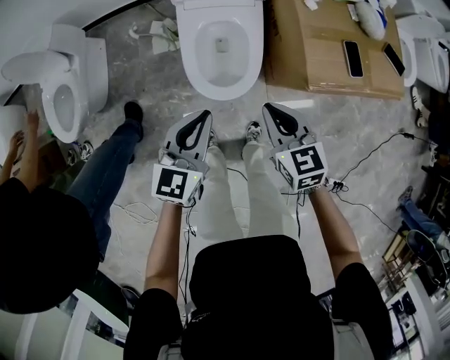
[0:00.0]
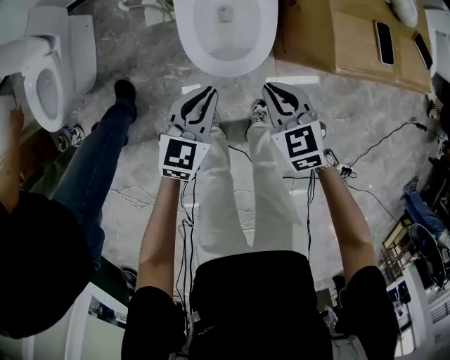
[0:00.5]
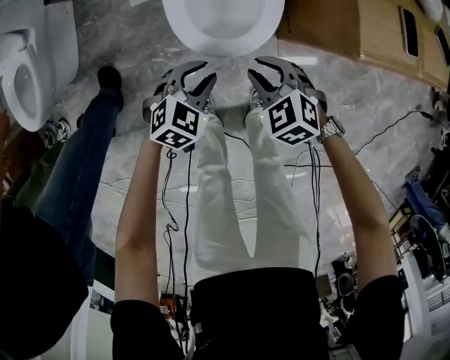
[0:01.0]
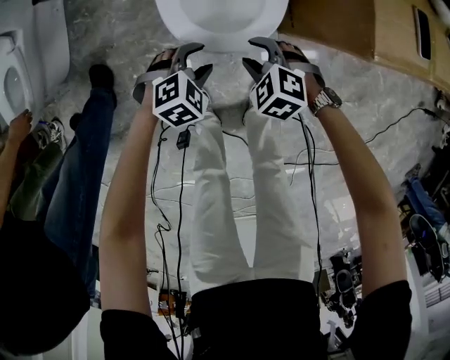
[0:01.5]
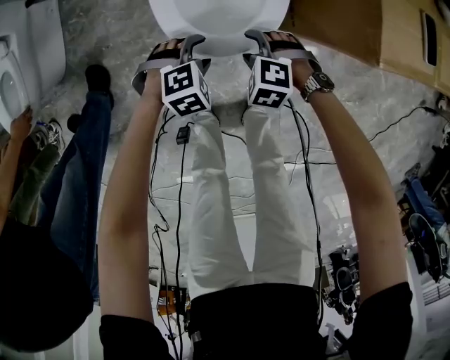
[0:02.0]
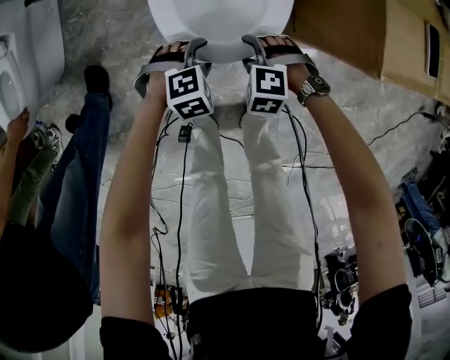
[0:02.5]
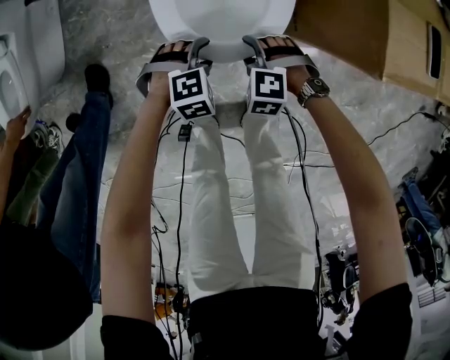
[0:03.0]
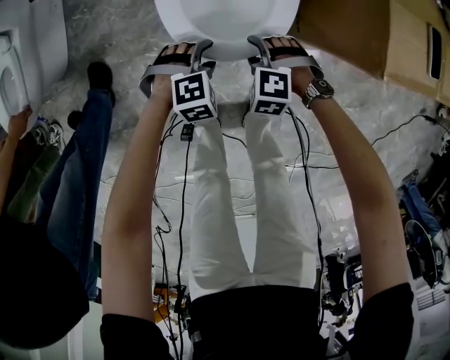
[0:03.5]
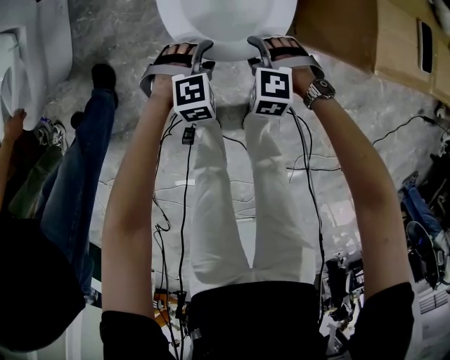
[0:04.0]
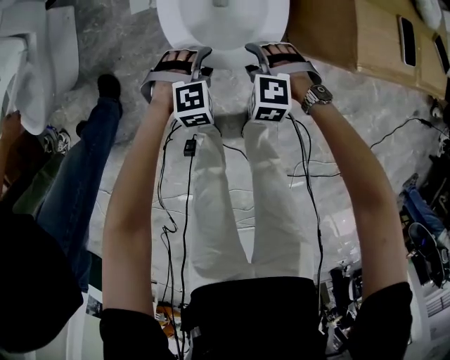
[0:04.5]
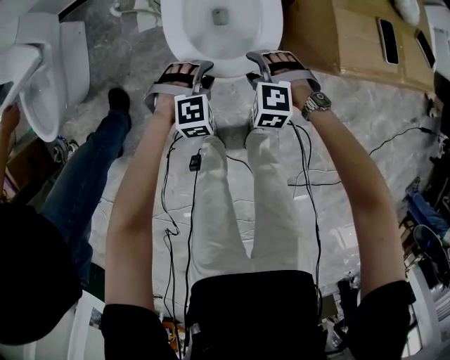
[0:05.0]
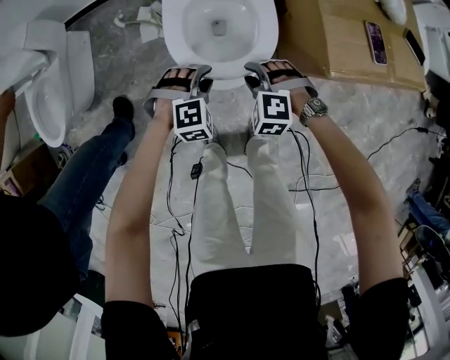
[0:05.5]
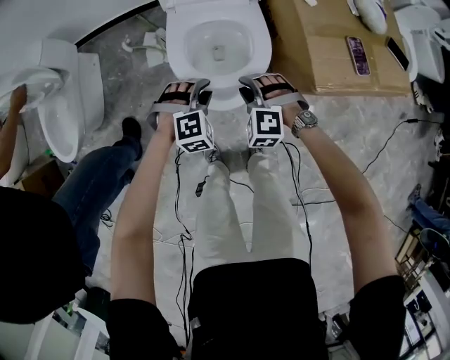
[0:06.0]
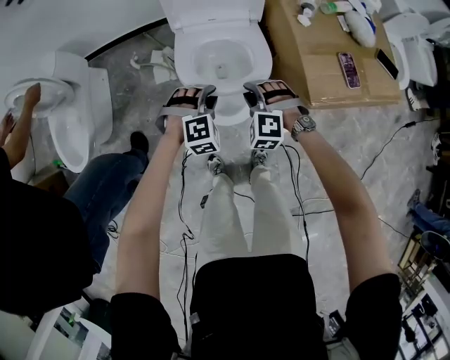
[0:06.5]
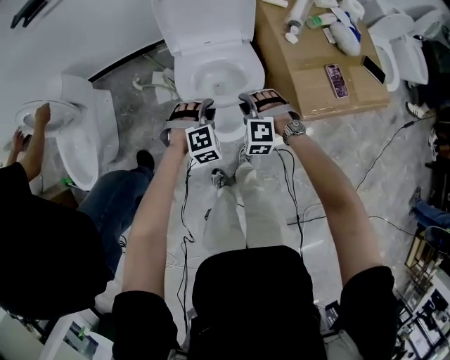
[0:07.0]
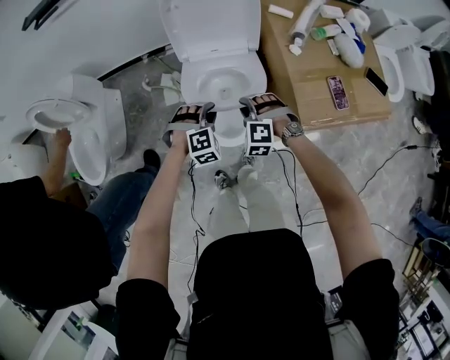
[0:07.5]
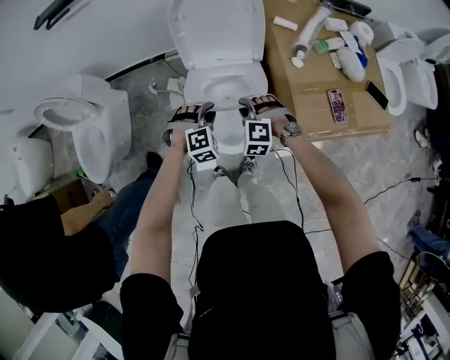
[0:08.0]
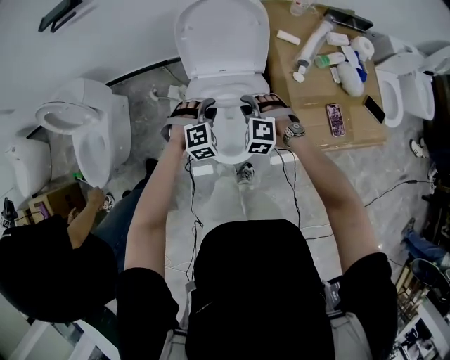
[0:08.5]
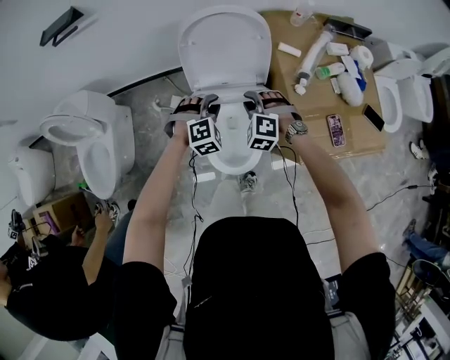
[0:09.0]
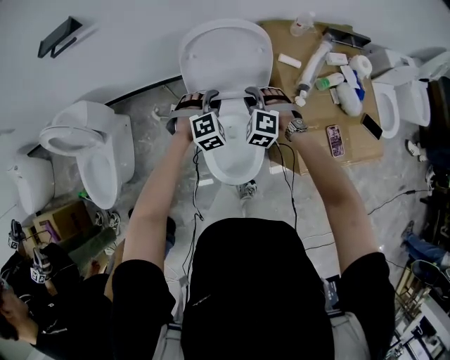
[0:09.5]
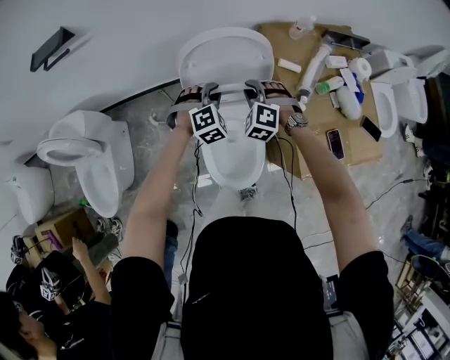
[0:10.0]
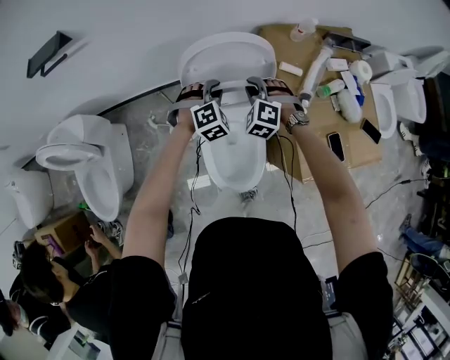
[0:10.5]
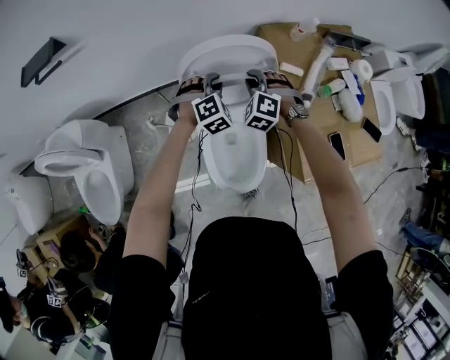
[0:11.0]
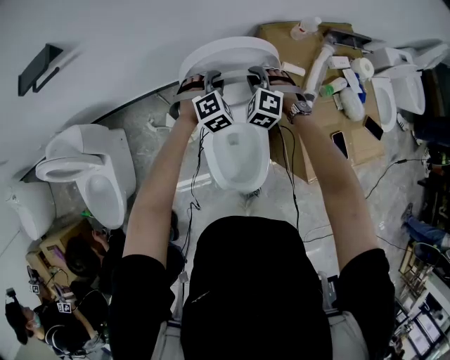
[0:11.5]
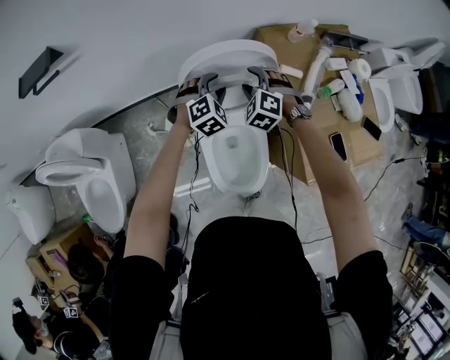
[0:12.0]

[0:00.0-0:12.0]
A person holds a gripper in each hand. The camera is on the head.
0:00.0 to 0:02.0: The grippers both shift downward by roughly 40 cm. The left gripper angles its fingers downward, by roughly 50 degrees, and opens. Meanwhile the right gripper rolls counterclockwise, seen from behind, by some 60 degrees, and opens up.
0:02.0 to 0:04.0: The grippers move only a little.
0:04.0 to 0:06.0: Both grippers move upward, about 20 cm. The right gripper closes its fingers; the left gripper closes up.
0:06.0 to 0:08.0: The right gripper goes about 15 cm forward and upward, while the left gripper travels upward and forward by some 15 cm.
0:08.0 to 0:10.0: Both grippers move forward, about 25 cm.
0:10.0 to 0:12.0: The grippers both shift forward by about 10 cm. The right gripper opens; the left gripper opens.

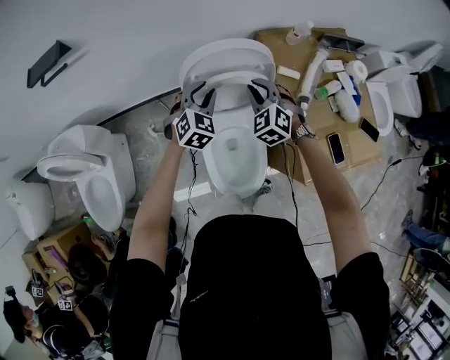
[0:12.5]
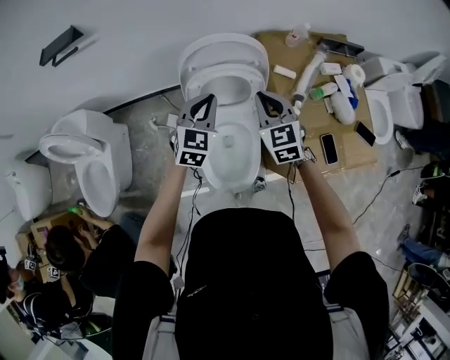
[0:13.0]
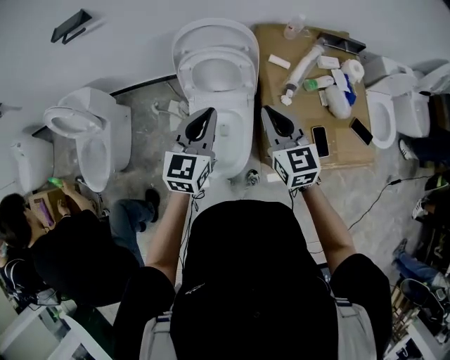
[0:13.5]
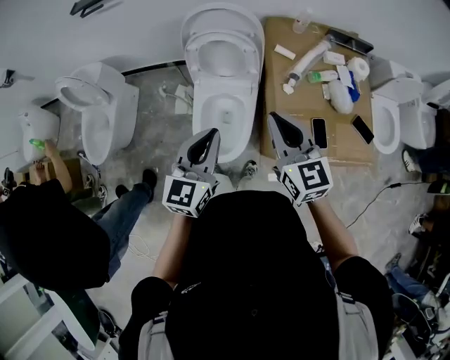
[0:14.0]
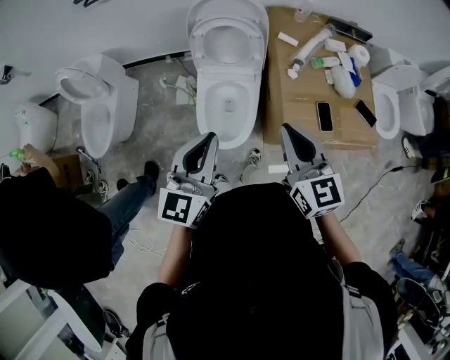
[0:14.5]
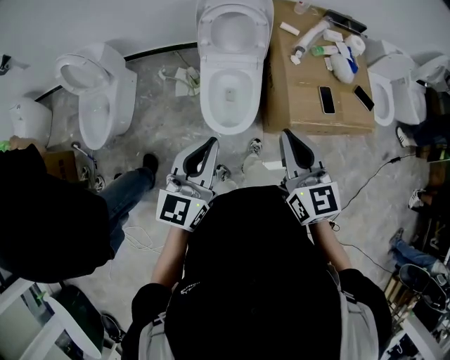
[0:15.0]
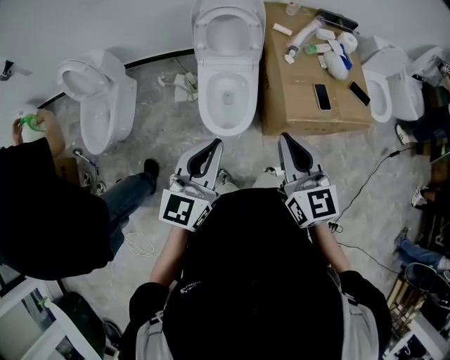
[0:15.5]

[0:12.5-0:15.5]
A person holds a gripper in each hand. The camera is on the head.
0:12.5 to 0:14.0: The right gripper shifts roughly 40 cm backward, upward and to the right, and changes its angle by approximately 50 degrees. Meanwhile the left gripper is displaced backward and upward by roughly 40 cm, swivels some 40 degrees, and closes.
0:14.0 to 0:15.5: The grippers both shift backward by roughly 25 cm.

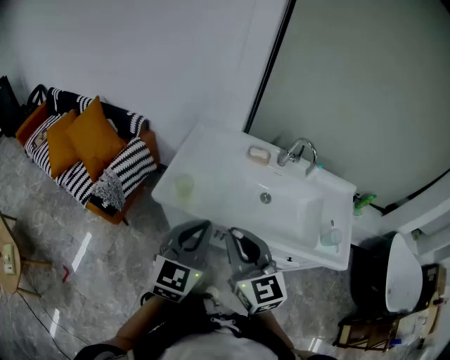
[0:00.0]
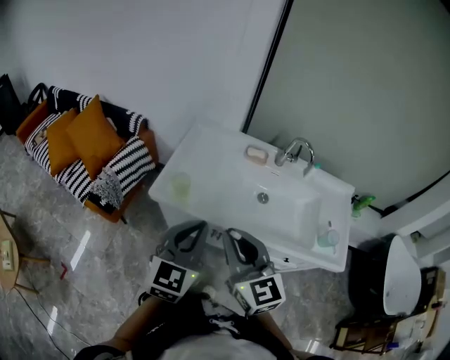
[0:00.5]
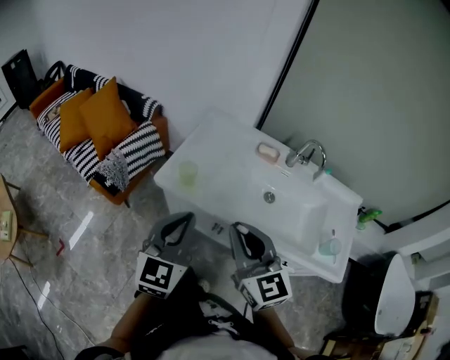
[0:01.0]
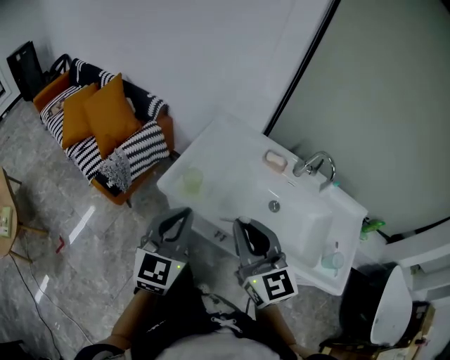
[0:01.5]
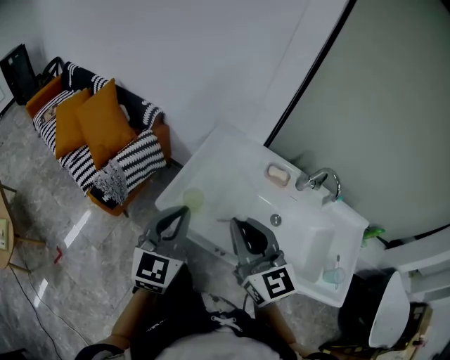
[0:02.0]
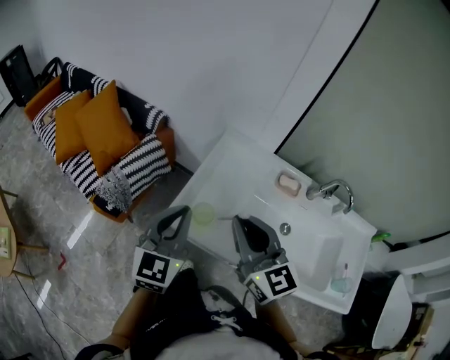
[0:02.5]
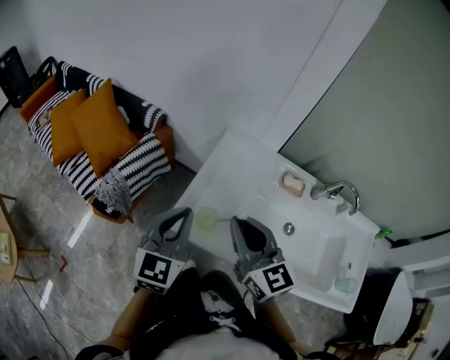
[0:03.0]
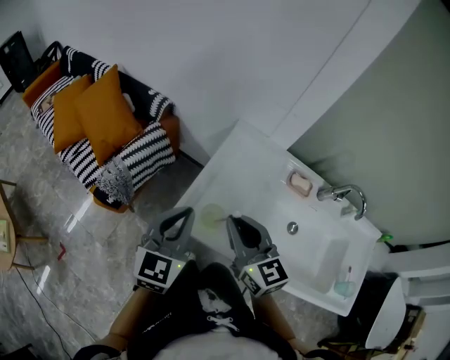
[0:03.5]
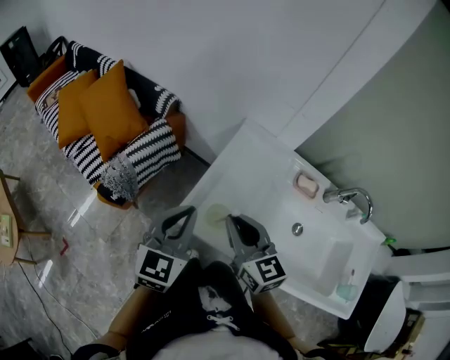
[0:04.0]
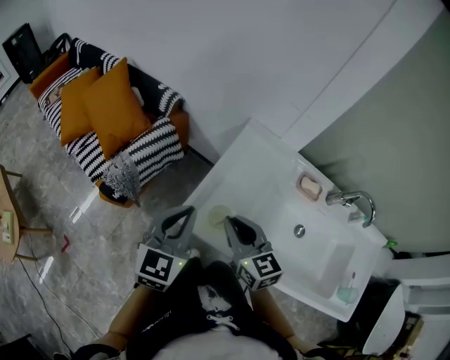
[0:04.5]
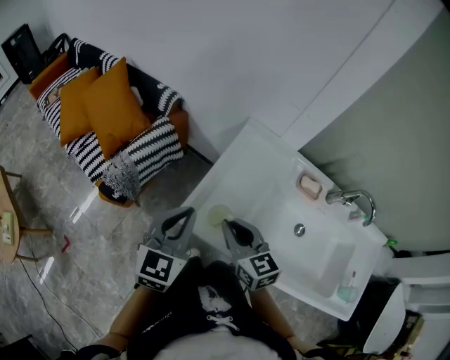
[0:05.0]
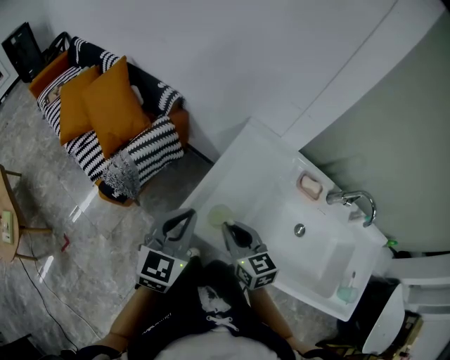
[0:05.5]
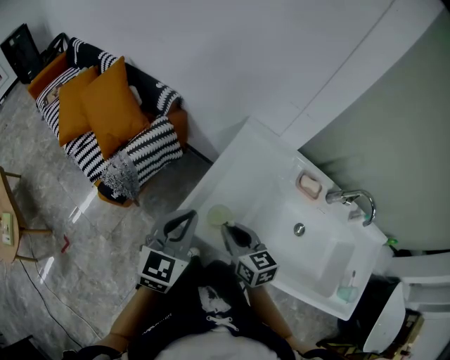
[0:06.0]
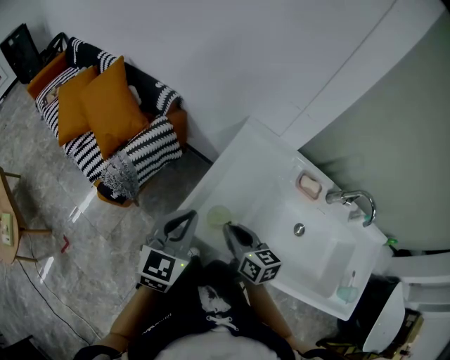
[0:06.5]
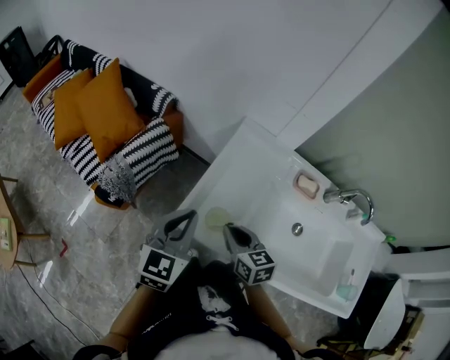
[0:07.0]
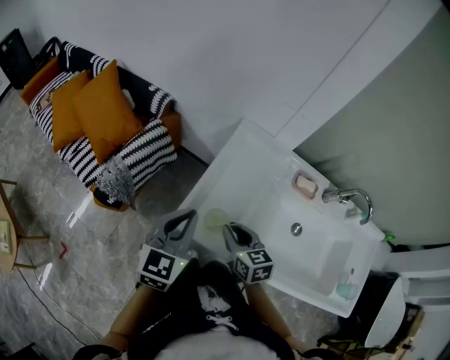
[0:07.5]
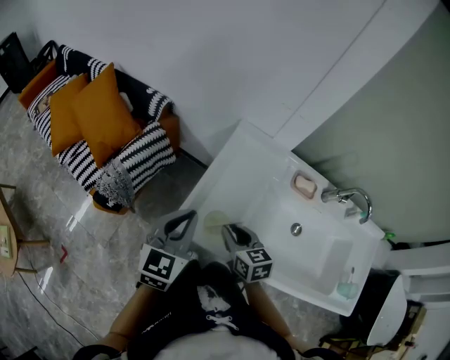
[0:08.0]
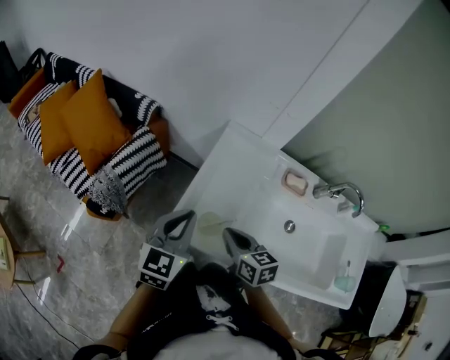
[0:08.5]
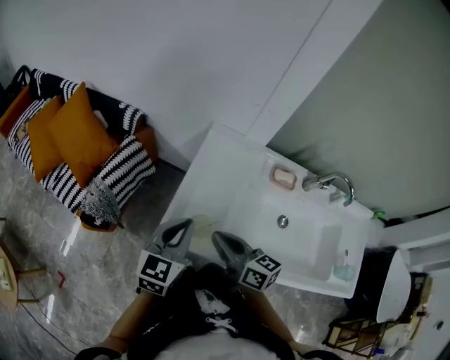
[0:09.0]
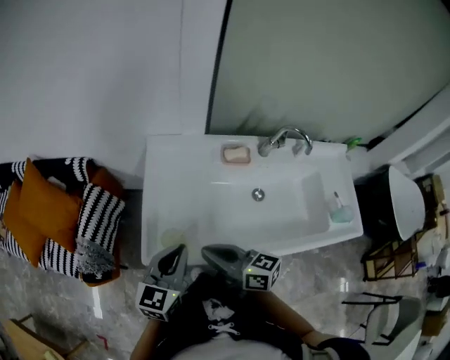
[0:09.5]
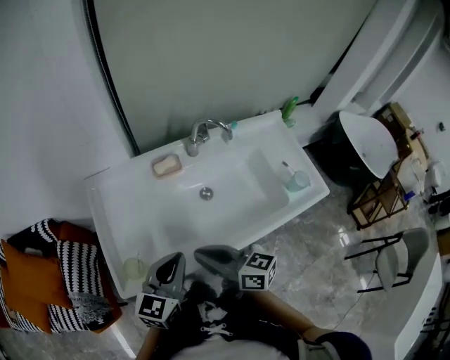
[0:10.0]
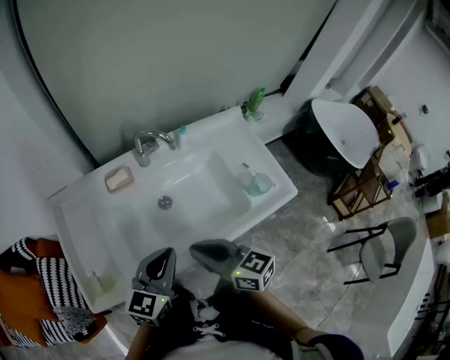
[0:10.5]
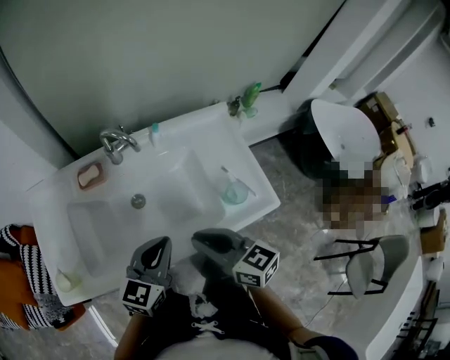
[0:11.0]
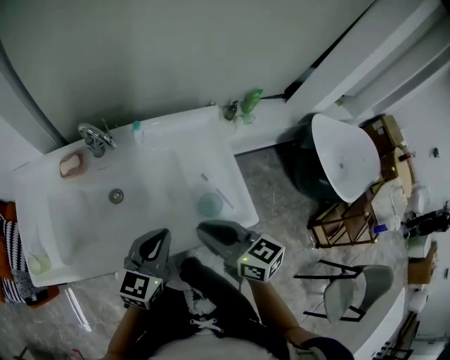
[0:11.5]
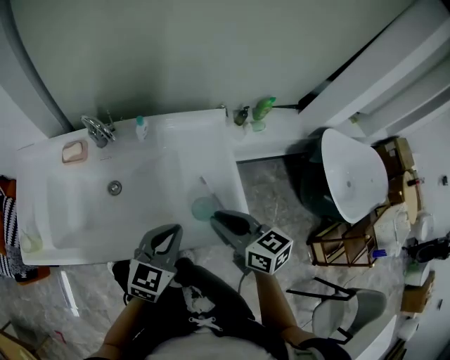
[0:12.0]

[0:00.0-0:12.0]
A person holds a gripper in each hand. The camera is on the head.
0:00.0 to 0:02.0: The left gripper goes some 15 cm forward and to the left; the right gripper shifts approximately 15 cm forward.
0:02.0 to 0:04.0: Both grippers travel together forward, downward and to the left, roughly 15 cm.
0:04.0 to 0:06.0: The right gripper moves downward, roughly 10 cm.
0:06.0 to 0:08.0: The grippers move only a little.
0:08.0 to 0:10.0: The left gripper ends up some 25 cm from where it was, and rotates about 50 degrees. Meanwhile the right gripper ends up roughly 25 cm from where it was, rotates roughly 40 degrees, and closes.
0:10.0 to 0:12.0: Both grippers are carried to the right, about 50 cm. The right gripper swivels some 20 degrees.
